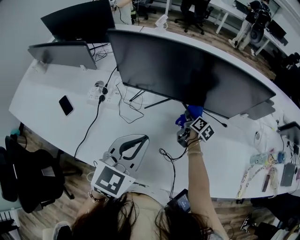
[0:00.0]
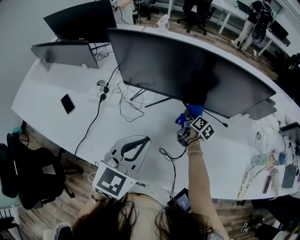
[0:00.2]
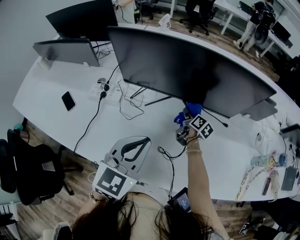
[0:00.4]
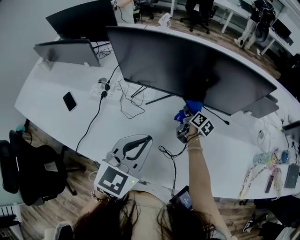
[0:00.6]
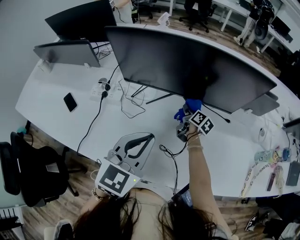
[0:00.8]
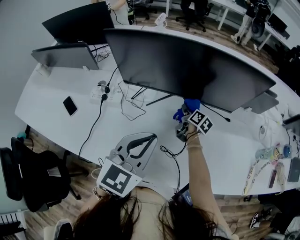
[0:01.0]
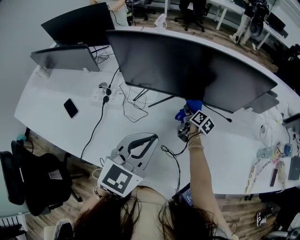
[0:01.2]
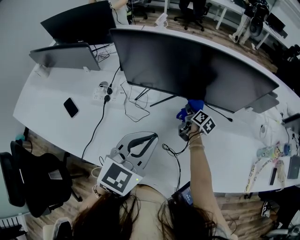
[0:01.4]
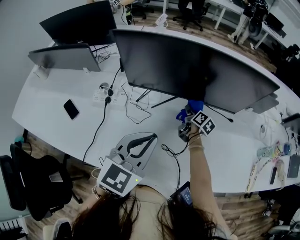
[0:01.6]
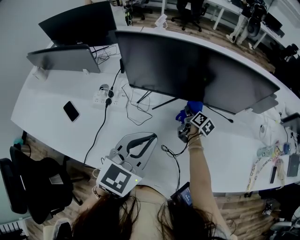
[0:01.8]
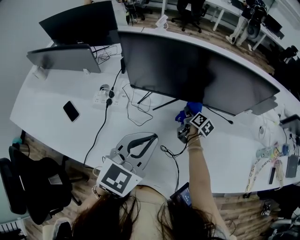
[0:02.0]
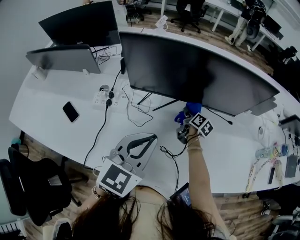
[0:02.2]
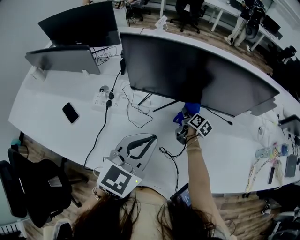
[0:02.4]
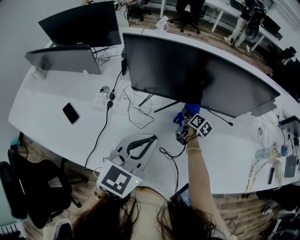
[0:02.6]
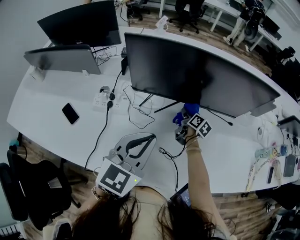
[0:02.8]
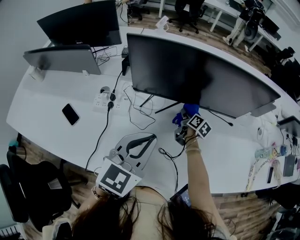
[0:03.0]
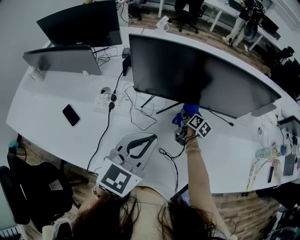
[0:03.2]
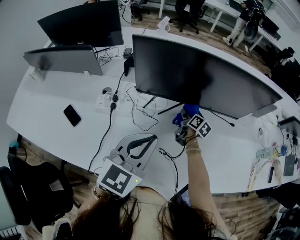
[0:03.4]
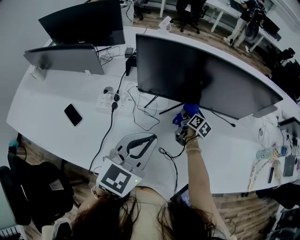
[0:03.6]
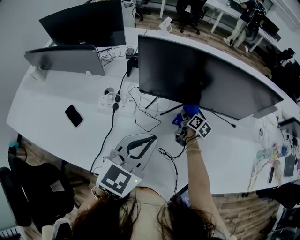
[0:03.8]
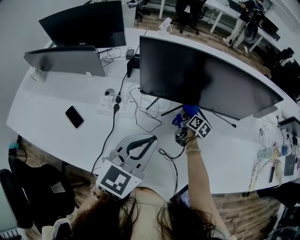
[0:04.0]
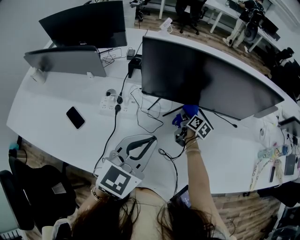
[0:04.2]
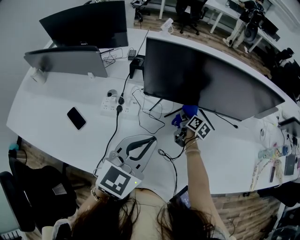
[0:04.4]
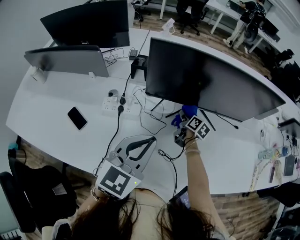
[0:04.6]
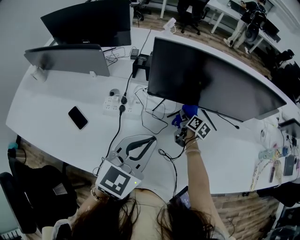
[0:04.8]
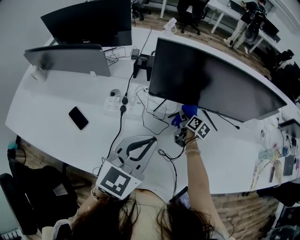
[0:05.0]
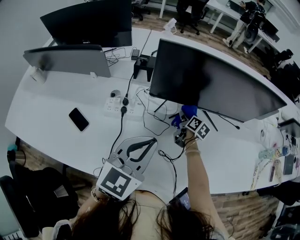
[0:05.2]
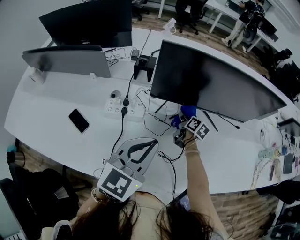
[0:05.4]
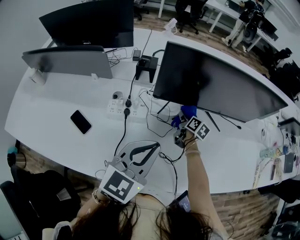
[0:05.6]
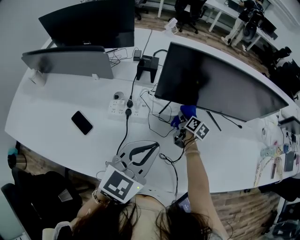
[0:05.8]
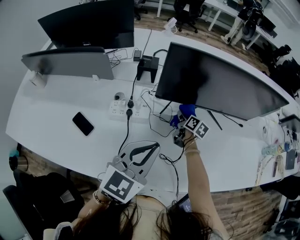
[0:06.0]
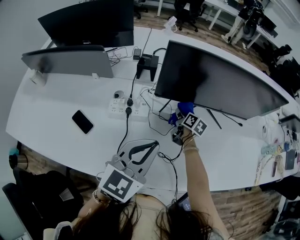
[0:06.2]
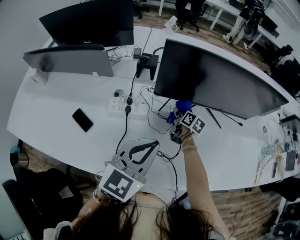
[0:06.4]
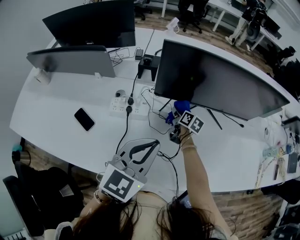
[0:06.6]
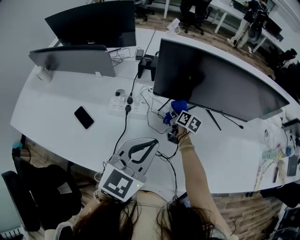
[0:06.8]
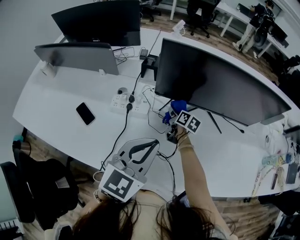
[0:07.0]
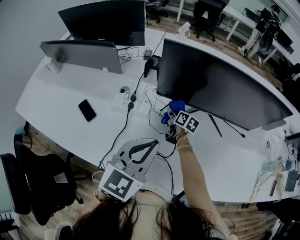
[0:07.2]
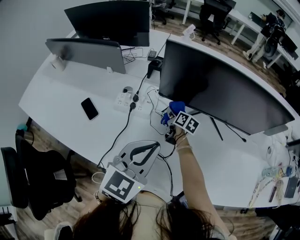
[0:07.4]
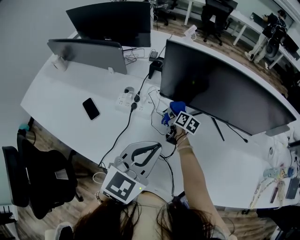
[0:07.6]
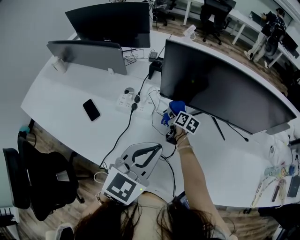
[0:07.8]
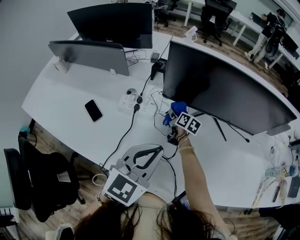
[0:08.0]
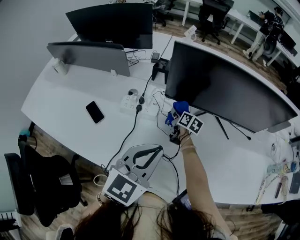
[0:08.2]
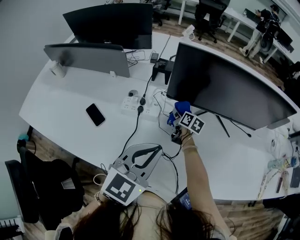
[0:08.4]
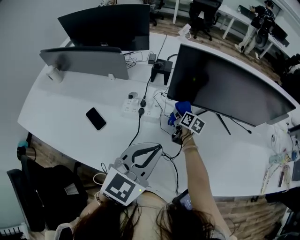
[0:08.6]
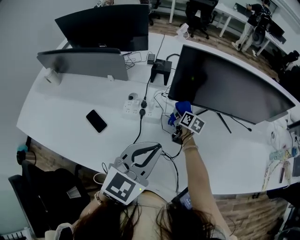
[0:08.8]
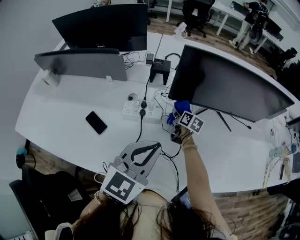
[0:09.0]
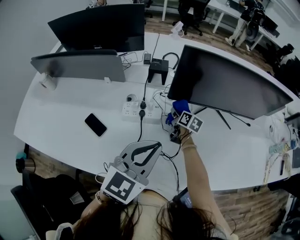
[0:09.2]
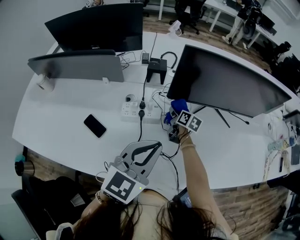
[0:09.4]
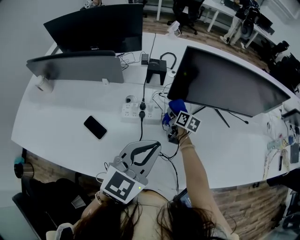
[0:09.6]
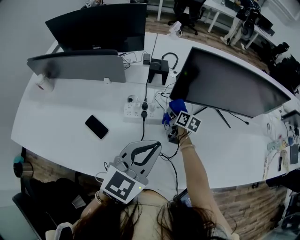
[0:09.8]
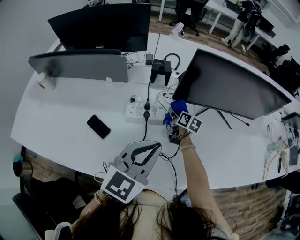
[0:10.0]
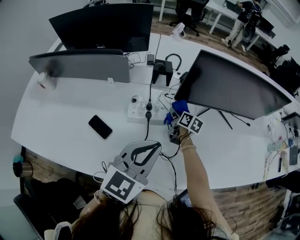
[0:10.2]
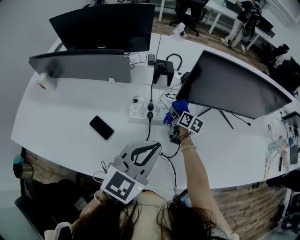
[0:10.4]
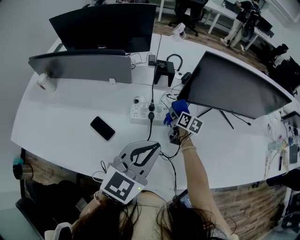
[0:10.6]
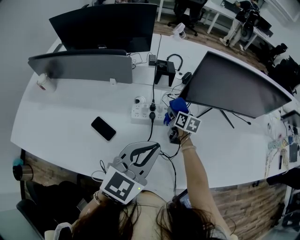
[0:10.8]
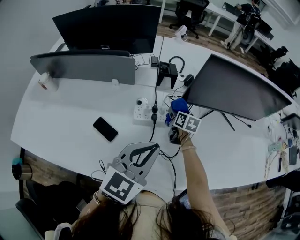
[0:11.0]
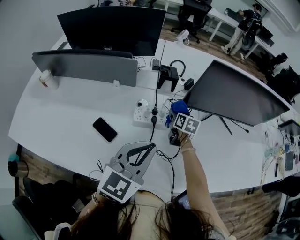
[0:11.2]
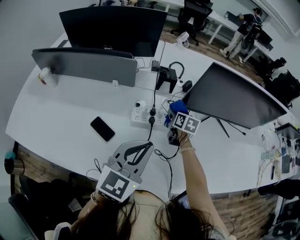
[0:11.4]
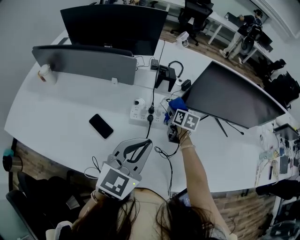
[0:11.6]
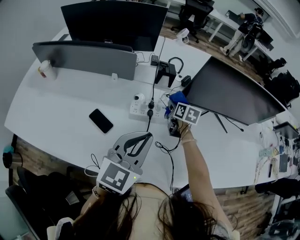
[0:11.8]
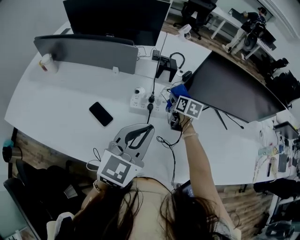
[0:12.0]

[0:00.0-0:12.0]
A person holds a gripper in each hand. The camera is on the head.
0:00.0 to 0:01.6: The grippers stay close to where they were, moving slightly.
0:01.6 to 0:03.0: The left gripper heads to the left, covering approximately 5 cm.
0:03.0 to 0:04.4: Both grippers move to the left, some 5 cm.
0:04.4 to 0:06.0: Both grippers travel together to the left, about 5 cm.
0:06.0 to 0:07.6: The right gripper moves to the left, roughly 10 cm. The left gripper is displaced to the right by some 5 cm.
0:07.6 to 0:09.0: The left gripper heads to the left, covering some 10 cm.
0:09.0 to 0:10.4: The grippers both shift to the left by roughly 5 cm.
0:10.4 to 0:12.0: The right gripper heads upward, covering roughly 5 cm, and rotates approximately 20 degrees.

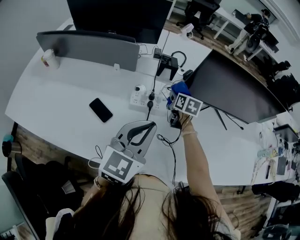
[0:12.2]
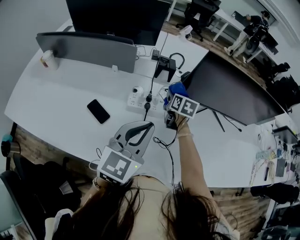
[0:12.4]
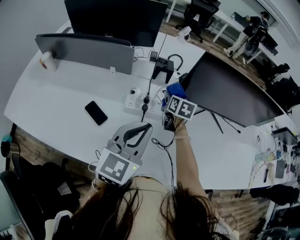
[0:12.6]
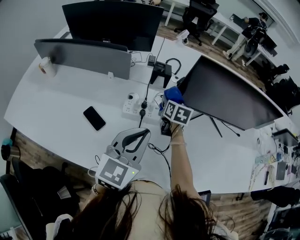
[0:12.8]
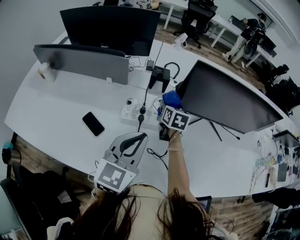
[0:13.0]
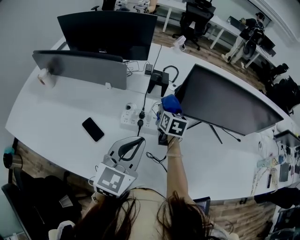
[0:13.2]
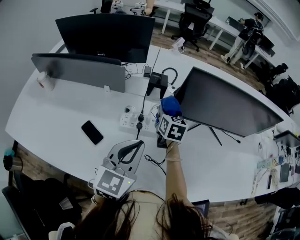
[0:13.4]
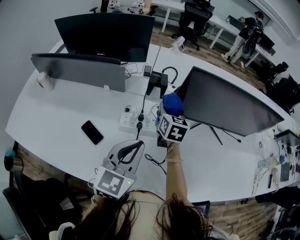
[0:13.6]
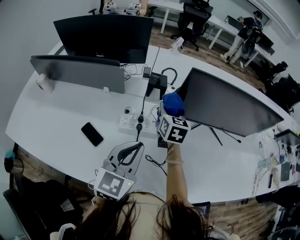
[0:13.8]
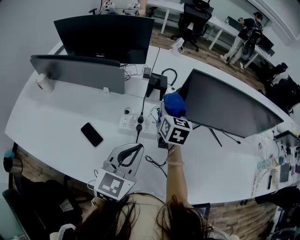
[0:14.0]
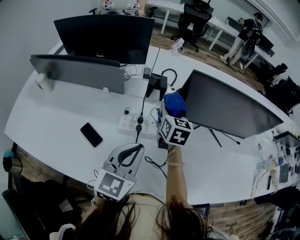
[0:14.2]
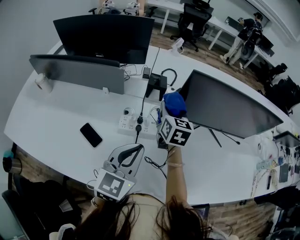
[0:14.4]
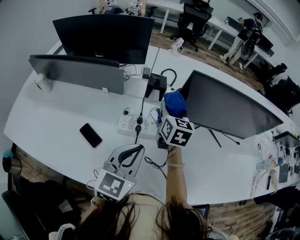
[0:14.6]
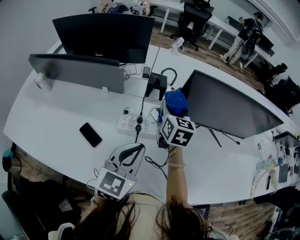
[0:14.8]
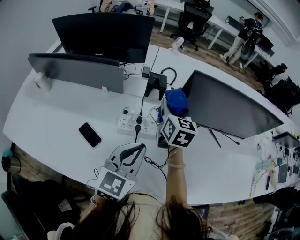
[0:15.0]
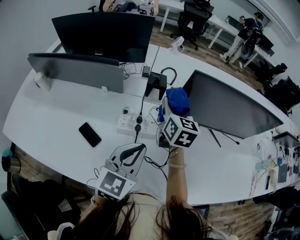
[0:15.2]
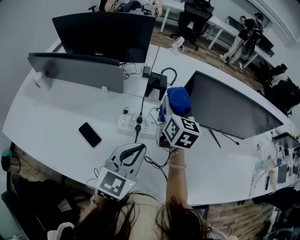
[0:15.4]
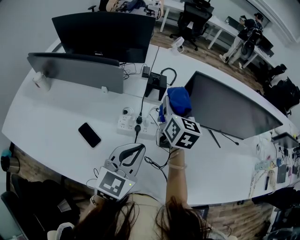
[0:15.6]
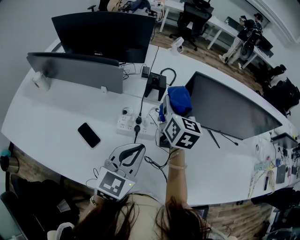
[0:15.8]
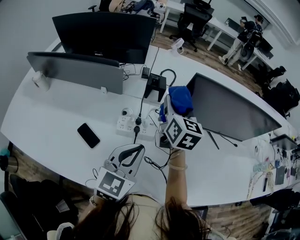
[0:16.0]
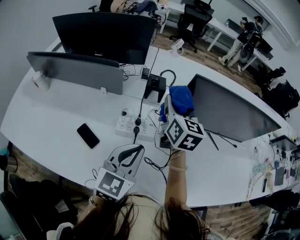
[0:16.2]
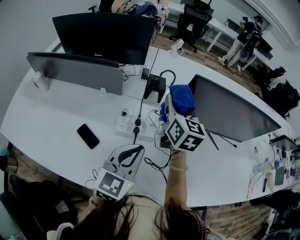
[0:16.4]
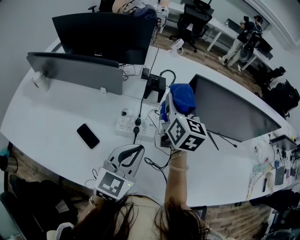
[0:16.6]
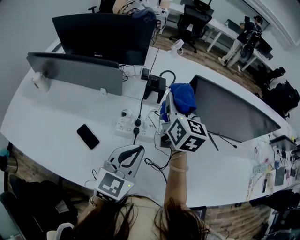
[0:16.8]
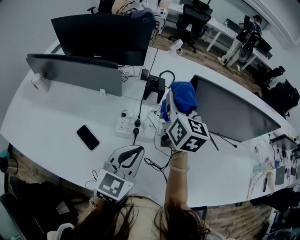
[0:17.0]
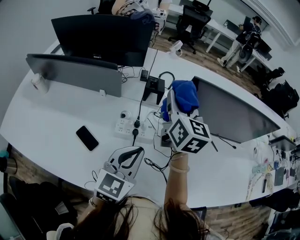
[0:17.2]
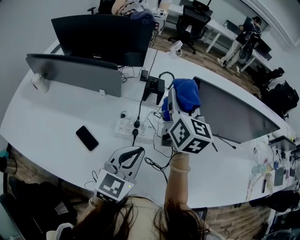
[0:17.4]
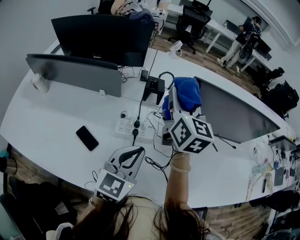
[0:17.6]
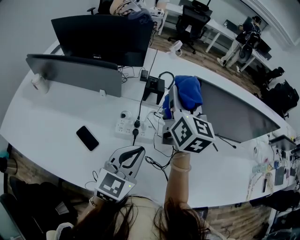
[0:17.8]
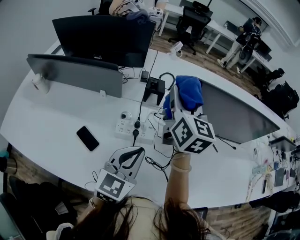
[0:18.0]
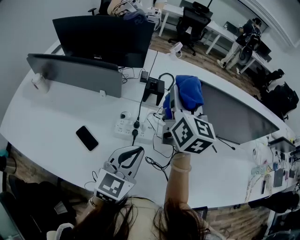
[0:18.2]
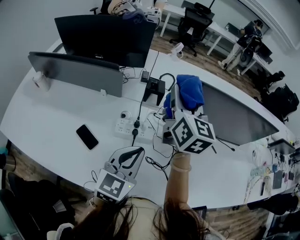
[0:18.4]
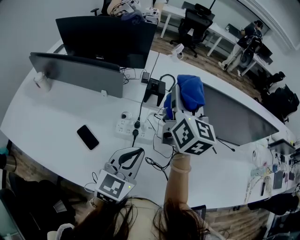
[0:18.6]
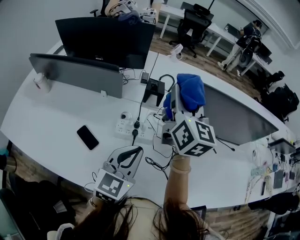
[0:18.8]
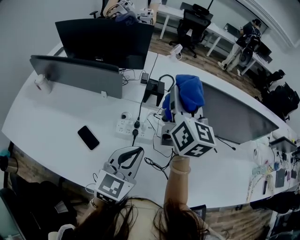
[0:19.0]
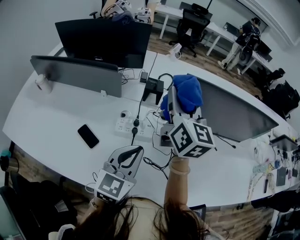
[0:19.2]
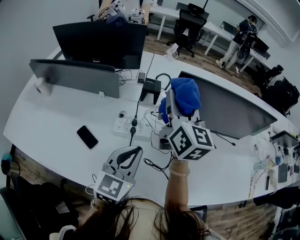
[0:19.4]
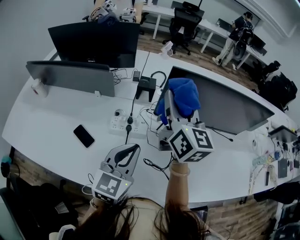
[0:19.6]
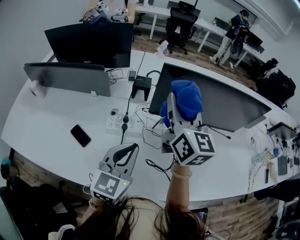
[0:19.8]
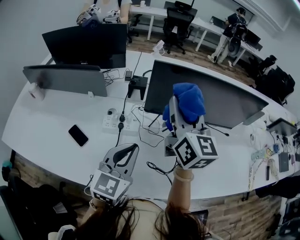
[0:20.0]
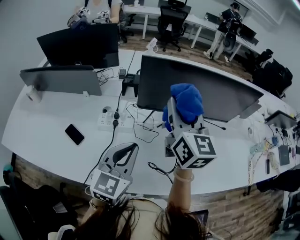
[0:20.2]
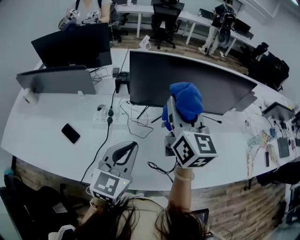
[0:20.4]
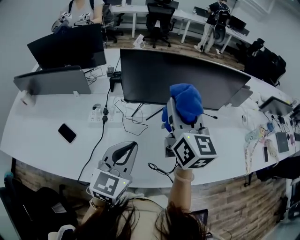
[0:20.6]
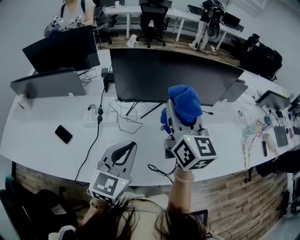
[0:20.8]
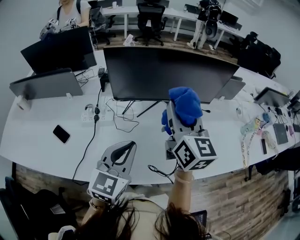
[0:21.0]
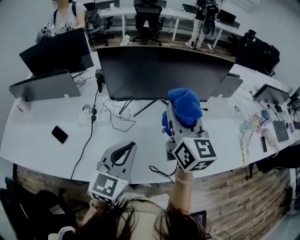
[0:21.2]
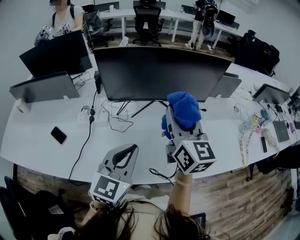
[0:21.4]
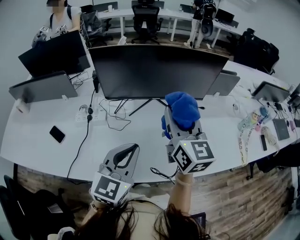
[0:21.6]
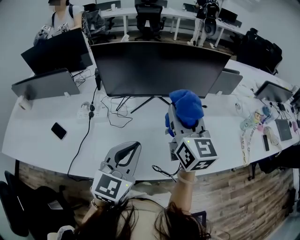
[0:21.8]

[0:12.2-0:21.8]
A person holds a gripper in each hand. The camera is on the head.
0:12.2 to 0:13.8: The right gripper heads upward, covering roughly 10 cm.
0:13.8 to 0:15.4: The right gripper moves upward, some 5 cm.
0:15.4 to 0:17.0: The right gripper moves upward, about 5 cm.
0:17.0 to 0:18.6: The right gripper goes roughly 5 cm upward.
0:18.6 to 0:20.2: The left gripper is displaced to the right by approximately 10 cm. Meanwhile the right gripper moves to the right and backward, about 20 cm.
0:20.2 to 0:21.8: The grippers both shift to the right by some 20 cm.

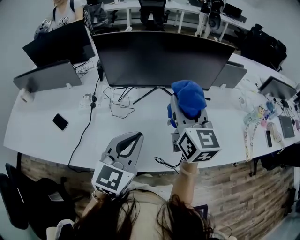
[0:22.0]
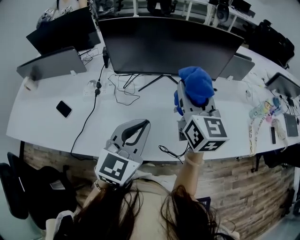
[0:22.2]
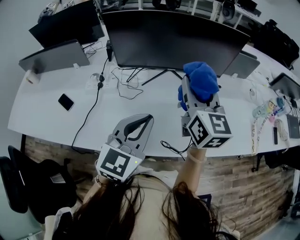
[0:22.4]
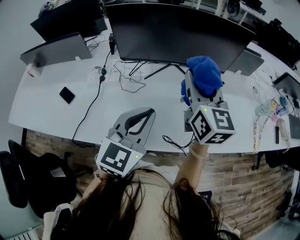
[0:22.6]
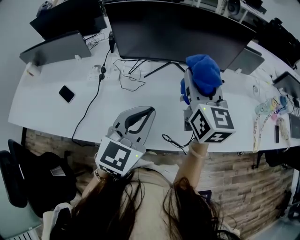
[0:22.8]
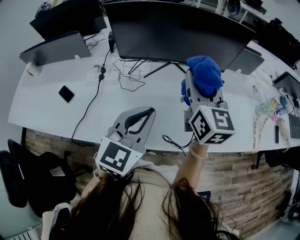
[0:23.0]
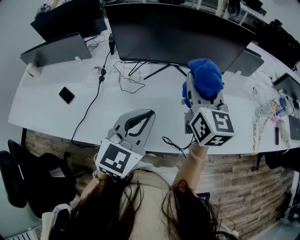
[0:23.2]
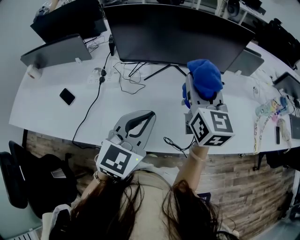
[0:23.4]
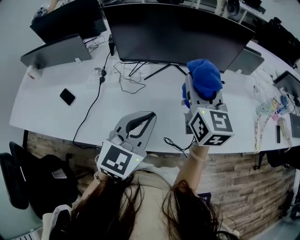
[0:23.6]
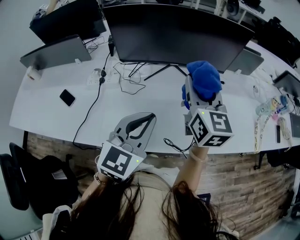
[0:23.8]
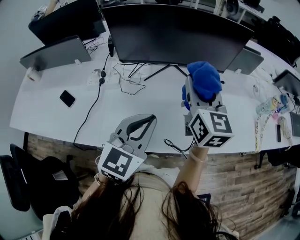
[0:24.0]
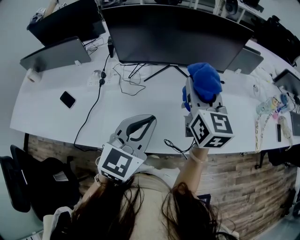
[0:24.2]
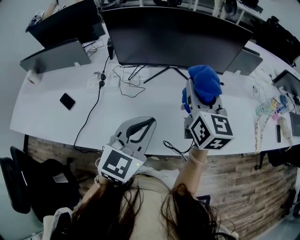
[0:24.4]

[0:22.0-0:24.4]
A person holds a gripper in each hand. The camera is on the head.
0:22.0 to 0:24.4: There are only small adjustments of the grippers.
